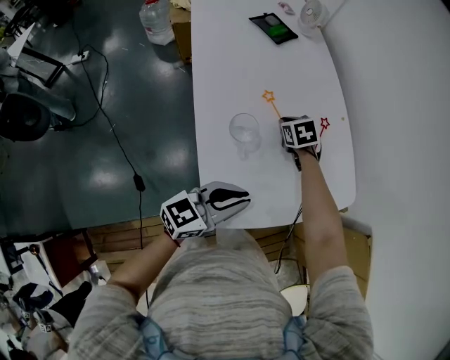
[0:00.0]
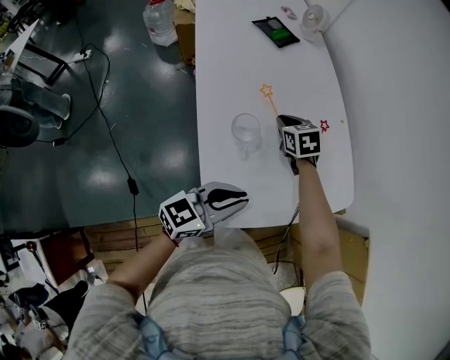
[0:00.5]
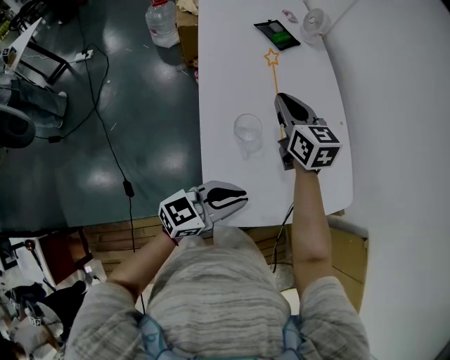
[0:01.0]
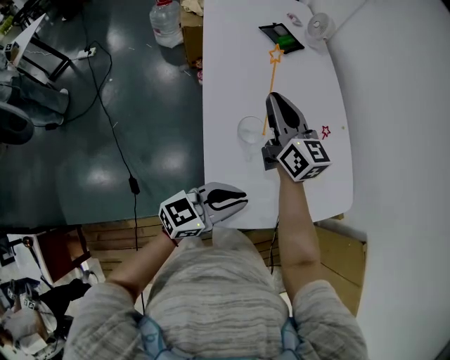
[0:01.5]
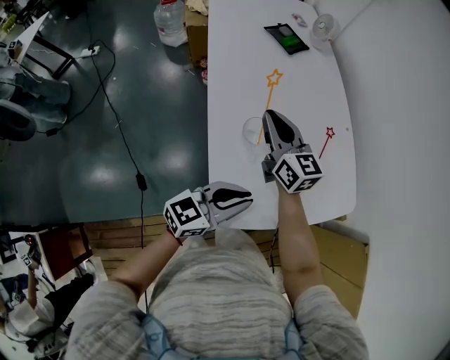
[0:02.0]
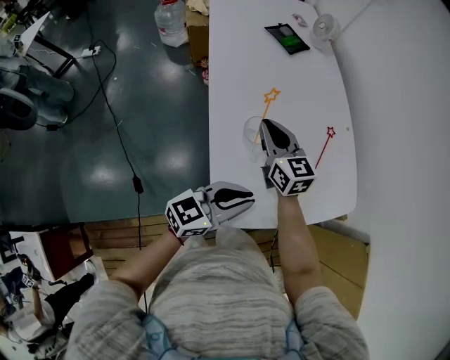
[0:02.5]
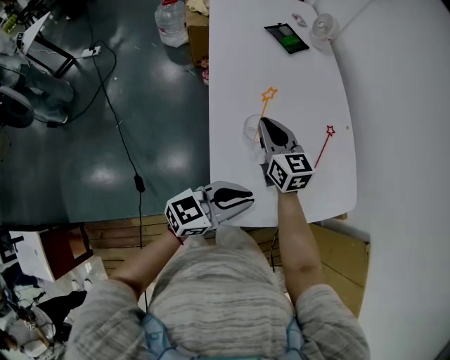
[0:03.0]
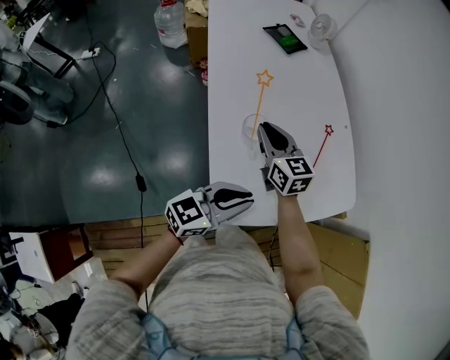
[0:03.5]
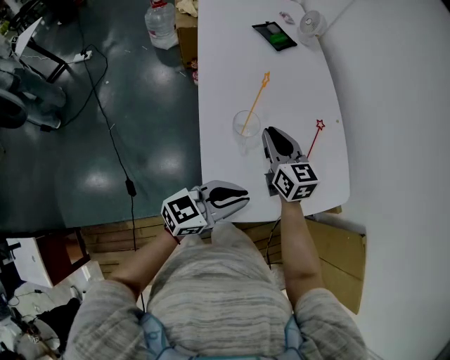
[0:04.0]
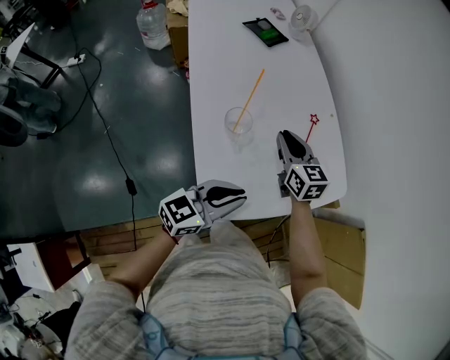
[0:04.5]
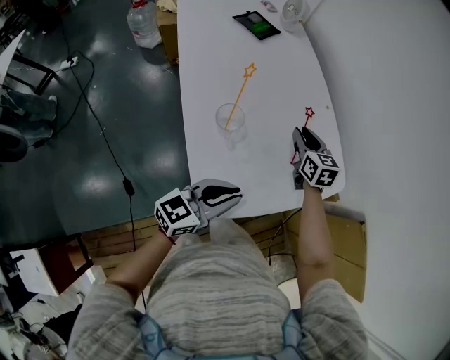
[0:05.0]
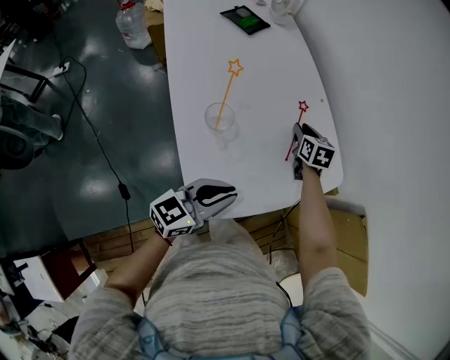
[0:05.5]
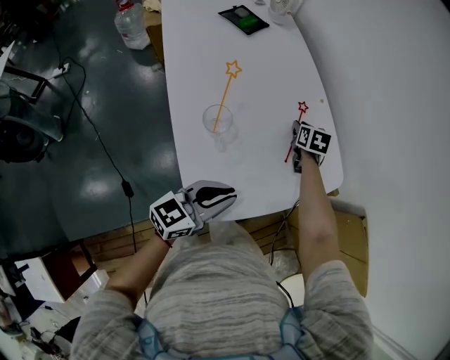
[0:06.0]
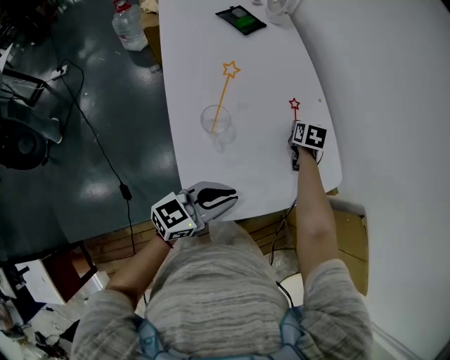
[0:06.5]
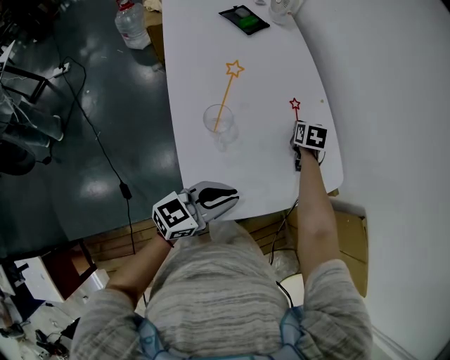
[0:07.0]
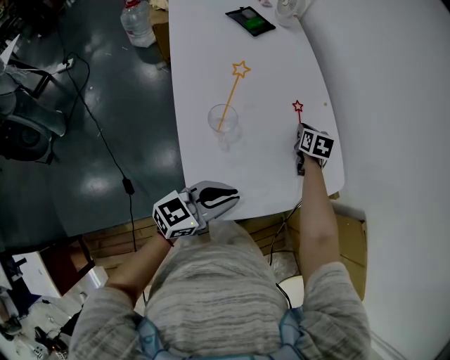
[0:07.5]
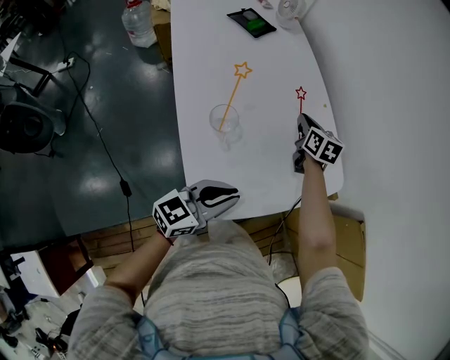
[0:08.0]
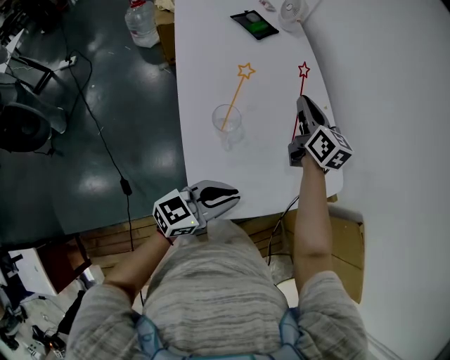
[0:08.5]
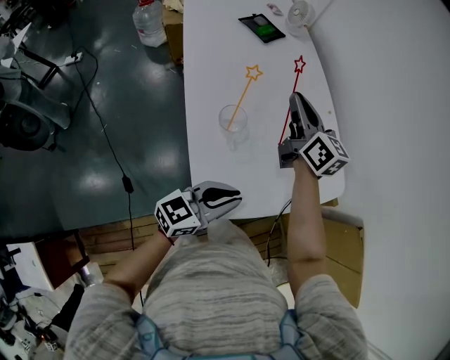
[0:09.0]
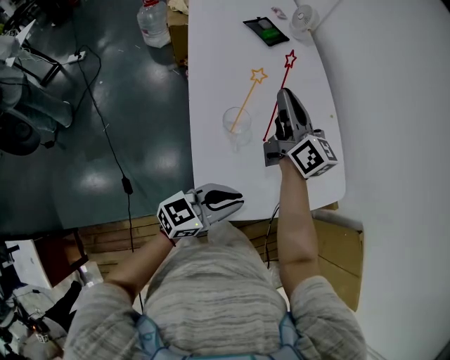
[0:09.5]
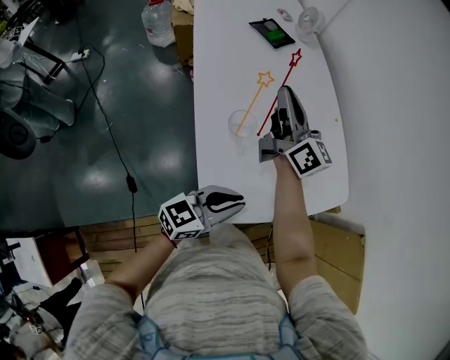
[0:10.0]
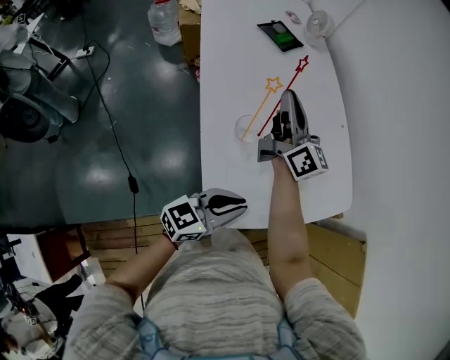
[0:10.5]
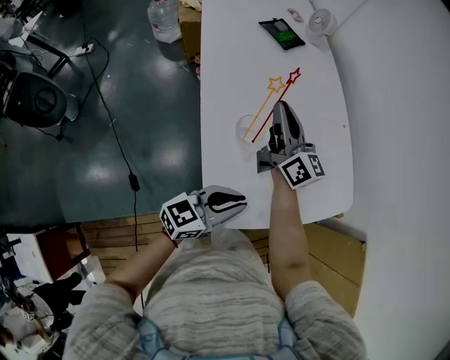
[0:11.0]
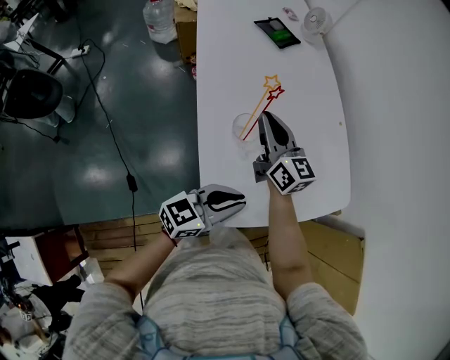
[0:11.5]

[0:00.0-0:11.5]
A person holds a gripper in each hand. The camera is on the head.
0:00.0 to 0:02.0: The right gripper is displaced upward, to the left and backward by roughly 25 cm, and tips its fingers upward by about 50 degrees.
0:02.0 to 0:04.0: The right gripper is displaced to the right by roughly 5 cm.
0:04.0 to 0:06.0: The right gripper goes about 30 cm to the right, forward and downward, and points its fingers roughly 30 degrees further downward.
0:06.0 to 0:07.5: The grippers stay close to where they were, moving slightly.
0:07.5 to 0:09.5: The right gripper moves upward, to the left and backward, some 30 cm, and points its fingers some 50 degrees further upward.
0:09.5 to 0:11.5: The right gripper travels downward by about 10 cm.

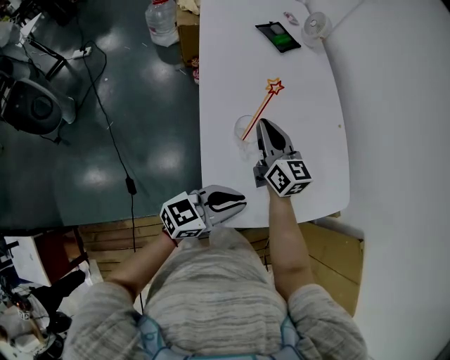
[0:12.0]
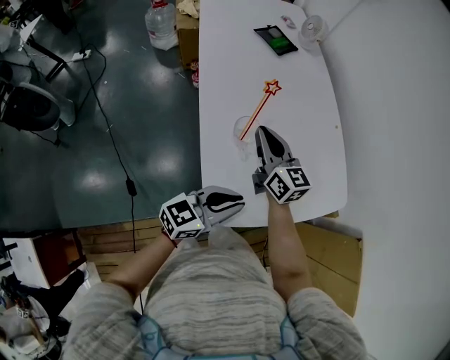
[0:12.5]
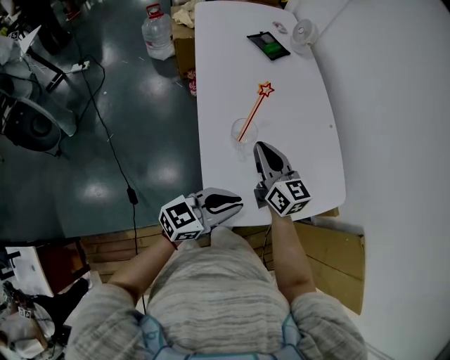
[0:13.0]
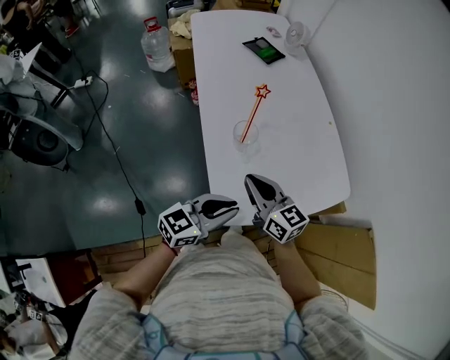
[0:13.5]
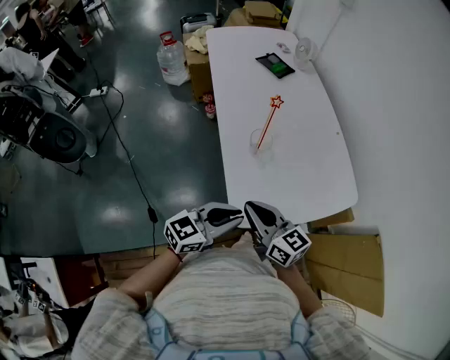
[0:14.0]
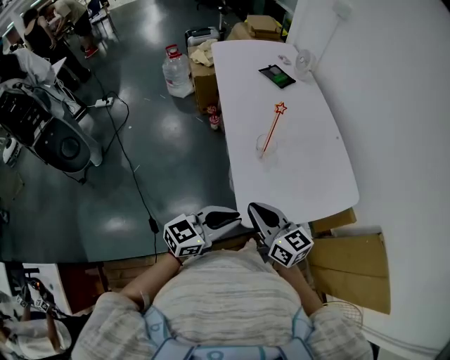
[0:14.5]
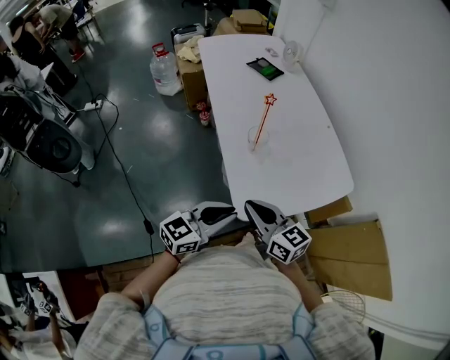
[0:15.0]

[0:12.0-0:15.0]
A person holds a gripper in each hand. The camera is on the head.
0:12.0 to 0:13.5: The right gripper is displaced backward by some 15 cm, while the left gripper moves some 5 cm.
0:13.5 to 0:15.0: The left gripper heads backward and to the left, covering roughly 10 cm, while the right gripper heads backward, covering approximately 15 cm.

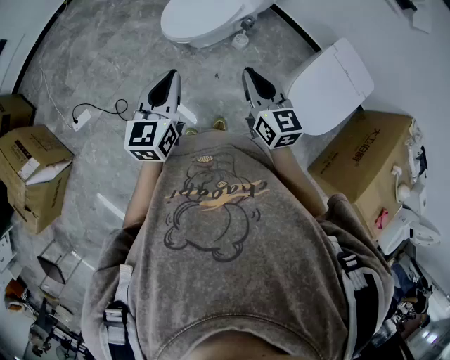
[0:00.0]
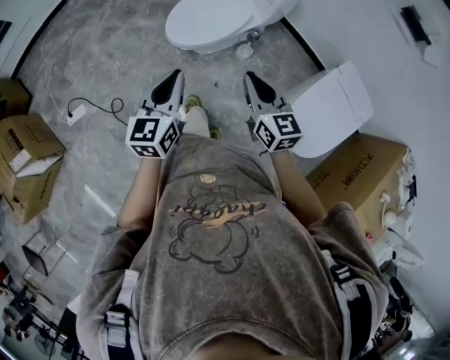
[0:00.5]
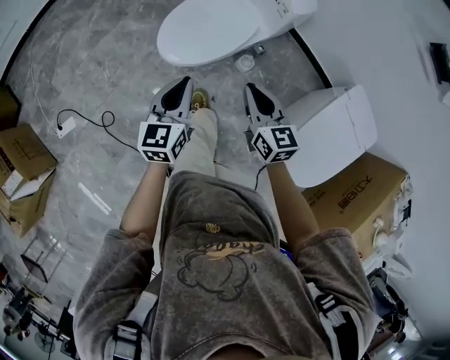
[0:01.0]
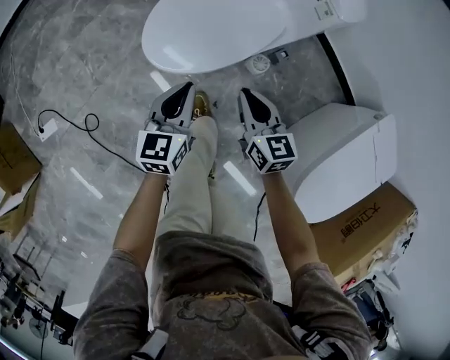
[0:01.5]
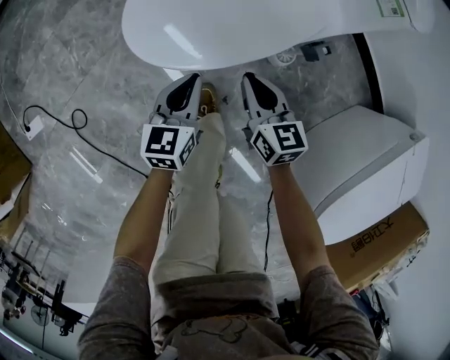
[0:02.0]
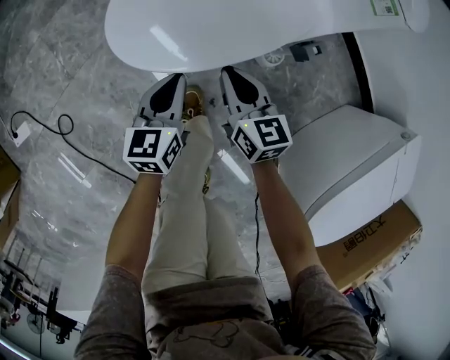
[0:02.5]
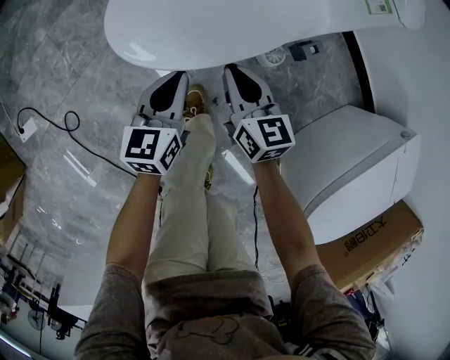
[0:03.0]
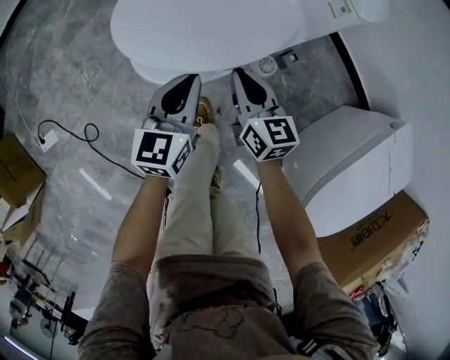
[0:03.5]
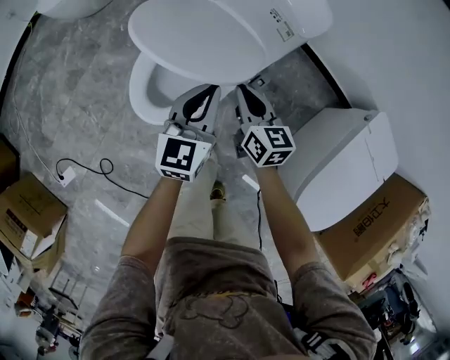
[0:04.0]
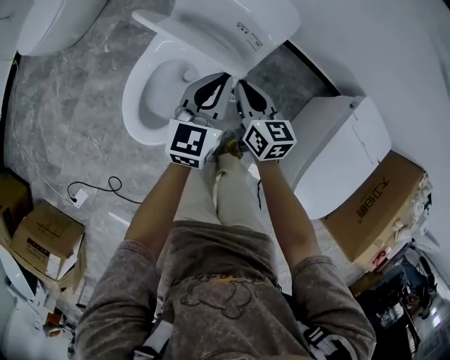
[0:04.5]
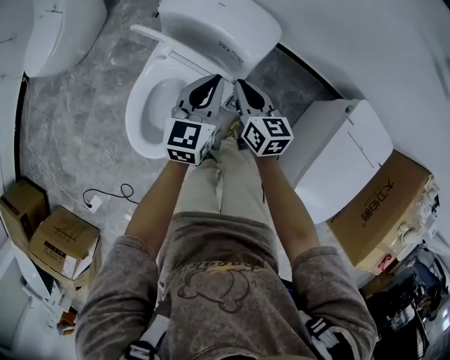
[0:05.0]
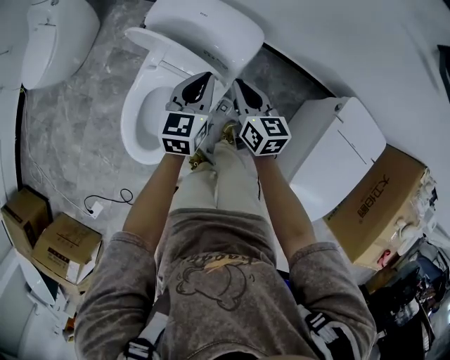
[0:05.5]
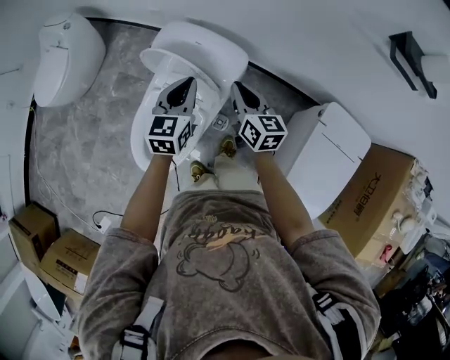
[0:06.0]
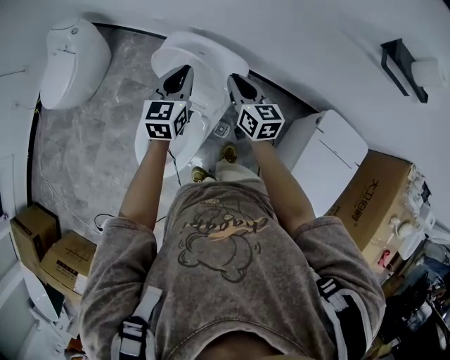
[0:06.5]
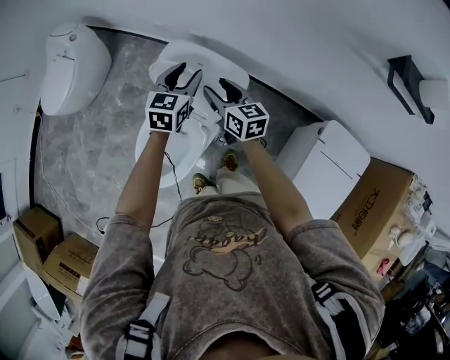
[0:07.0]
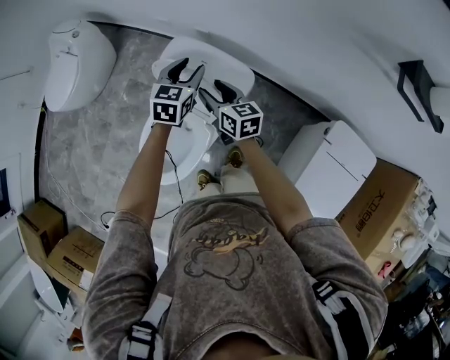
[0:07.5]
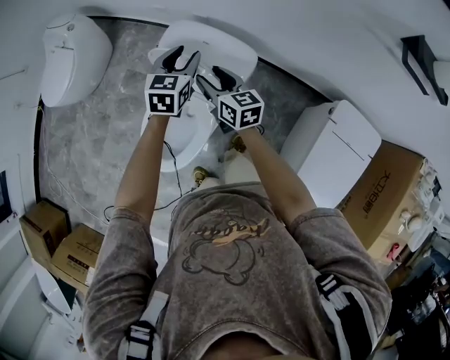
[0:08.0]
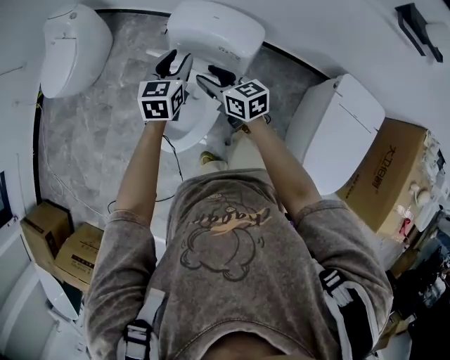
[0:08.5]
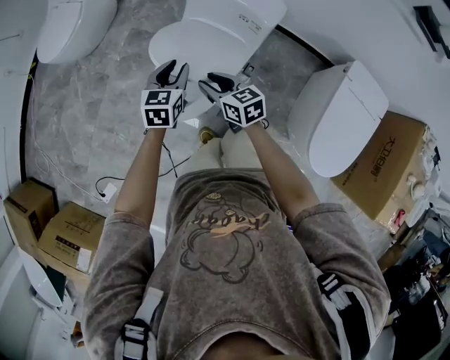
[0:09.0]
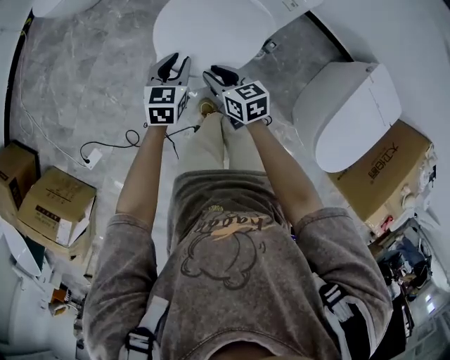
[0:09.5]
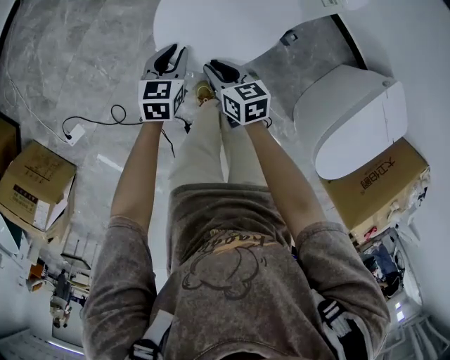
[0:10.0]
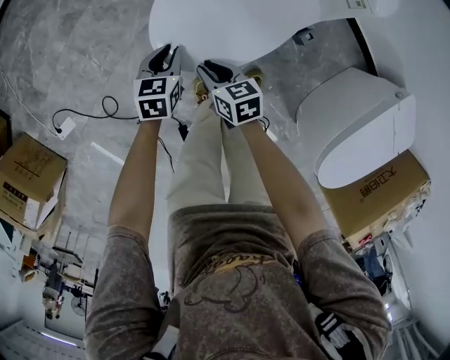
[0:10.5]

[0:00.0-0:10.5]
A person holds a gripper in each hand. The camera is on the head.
0:00.0 to 0:02.0: Both grippers move downward and forward, some 60 cm.
0:02.0 to 0:04.0: The right gripper is displaced upward, to the right and forward by about 25 cm; the left gripper shifts some 30 cm upward and to the right, and swivels roughly 20 degrees.
0:04.0 to 0:06.5: The grippers both shift forward, upward and to the right by about 35 cm.
0:06.5 to 0:08.5: The right gripper shifts approximately 20 cm to the left and backward, and opens; the left gripper shifts some 10 cm to the left and backward, and opens its fingers.
0:08.5 to 0:10.5: Both grippers move downward, to the left and backward, about 50 cm. The right gripper swivels approximately 30 degrees, and closes. The left gripper turns by roughly 30 degrees.

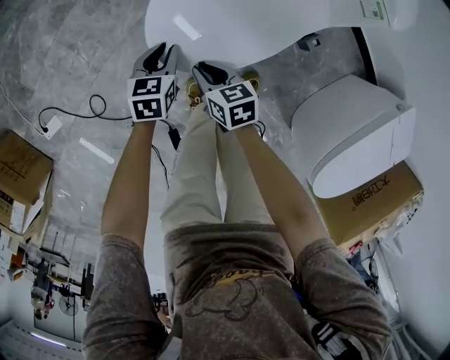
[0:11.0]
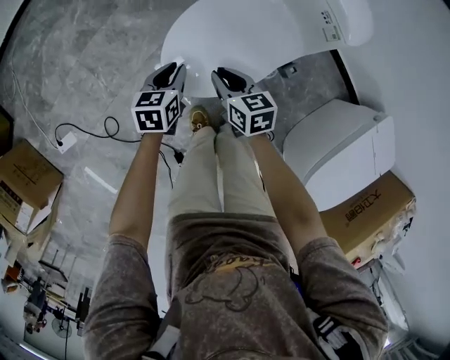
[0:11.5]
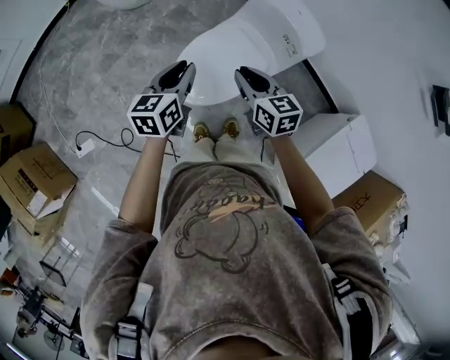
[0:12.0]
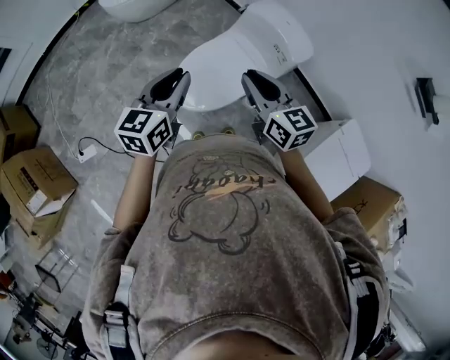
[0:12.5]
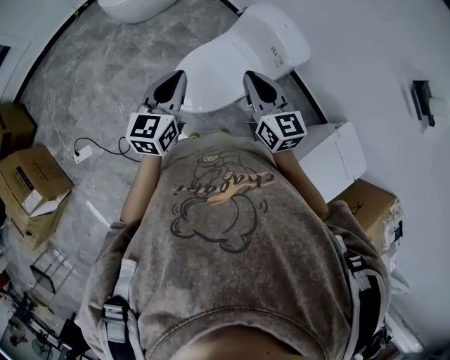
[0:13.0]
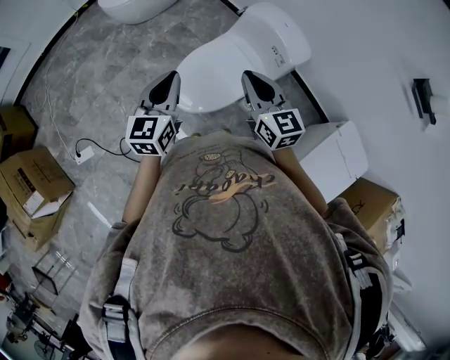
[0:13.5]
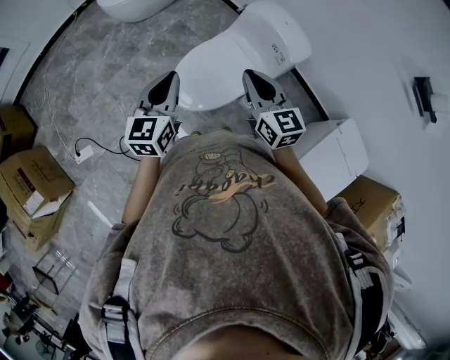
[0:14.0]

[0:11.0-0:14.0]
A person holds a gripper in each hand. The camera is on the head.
0:11.0 to 0:12.5: Both grippers move upward, roughly 50 cm. The right gripper points its fingers roughly 30 degrees further upward. Meanwhile the left gripper tilts its fingers some 30 degrees upward.
0:12.5 to 0:14.0: The grippers make only small movements.
